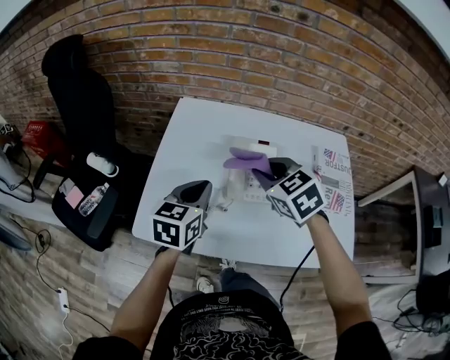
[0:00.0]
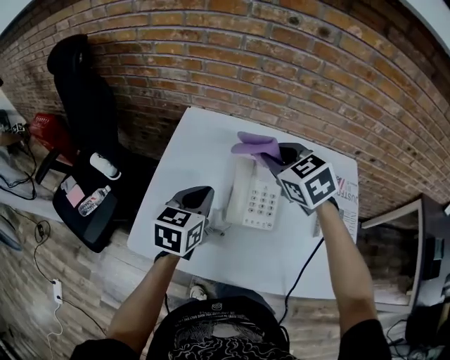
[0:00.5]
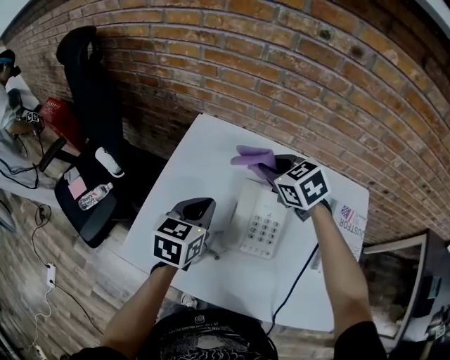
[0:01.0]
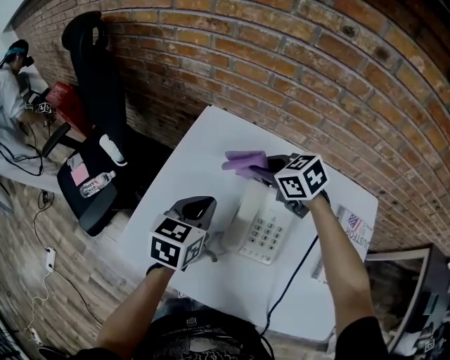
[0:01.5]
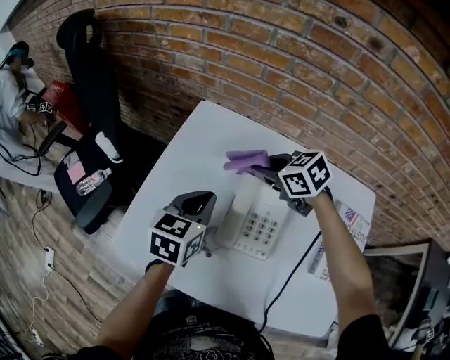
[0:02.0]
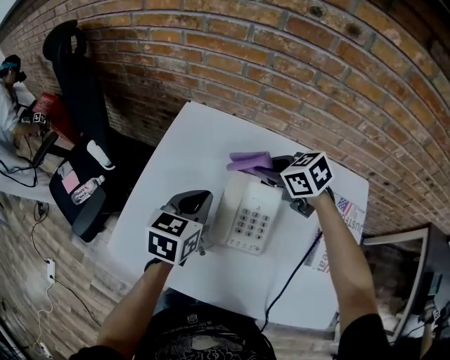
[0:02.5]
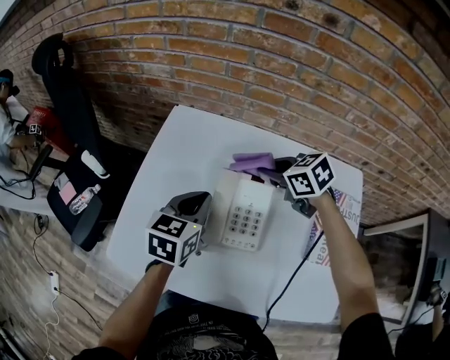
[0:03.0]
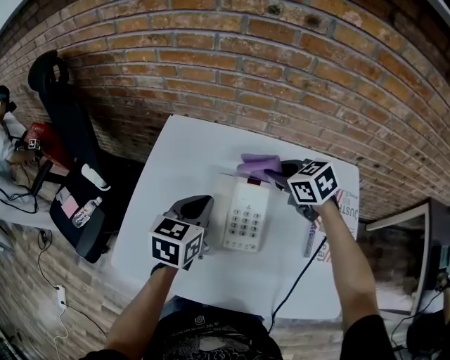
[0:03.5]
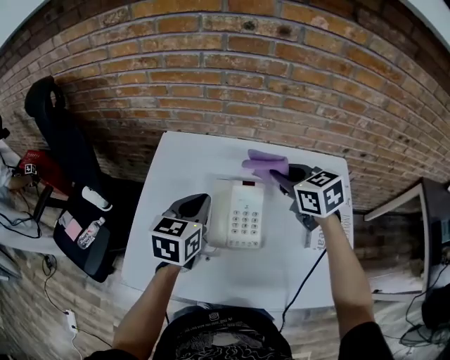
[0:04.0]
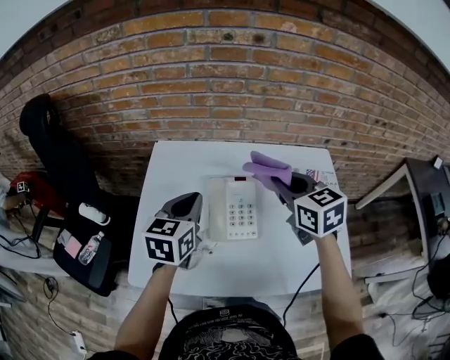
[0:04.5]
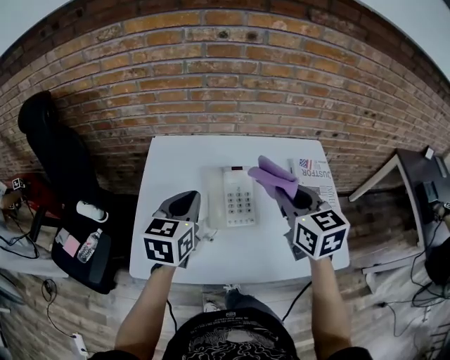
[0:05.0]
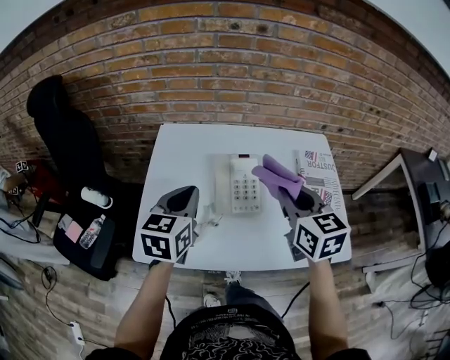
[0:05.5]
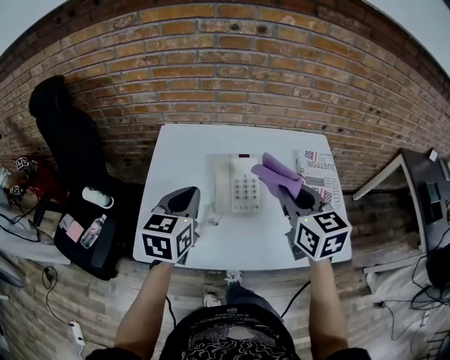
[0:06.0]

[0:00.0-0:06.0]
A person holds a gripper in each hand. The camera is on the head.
0:00.0 to 0:02.0: The left gripper changes place by roughly 10 cm, while the right gripper shifts by approximately 20 cm, and turns by some 30 degrees.
0:02.0 to 0:04.0: The right gripper moves to the right, upward and backward, some 15 cm, and swivels about 30 degrees; the left gripper changes place by about 5 cm.
0:04.0 to 0:06.0: The right gripper heads backward, covering about 20 cm, and turns by roughly 30 degrees; the left gripper moves backward and upward, roughly 10 cm.

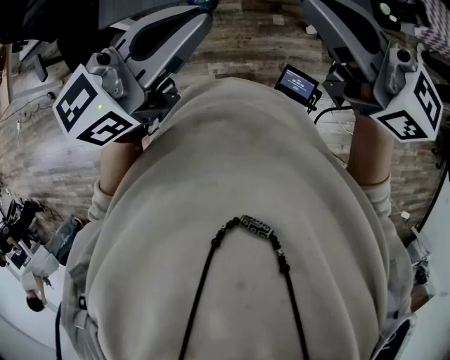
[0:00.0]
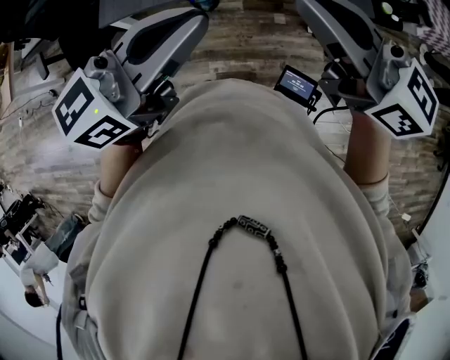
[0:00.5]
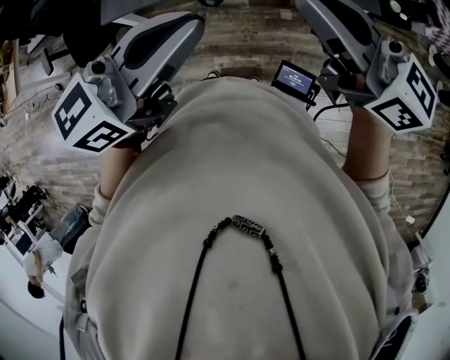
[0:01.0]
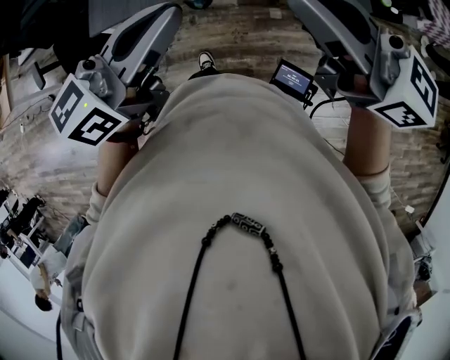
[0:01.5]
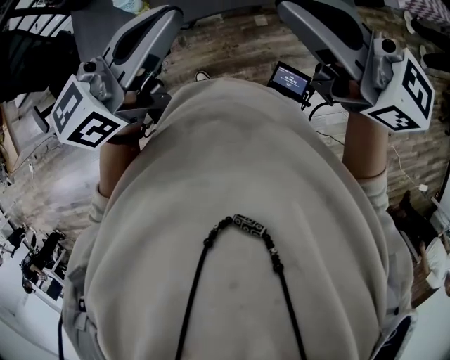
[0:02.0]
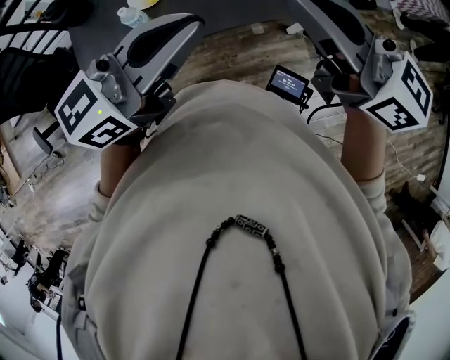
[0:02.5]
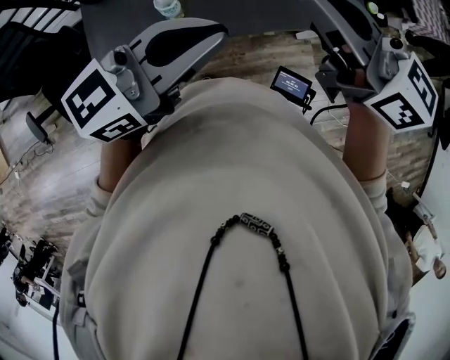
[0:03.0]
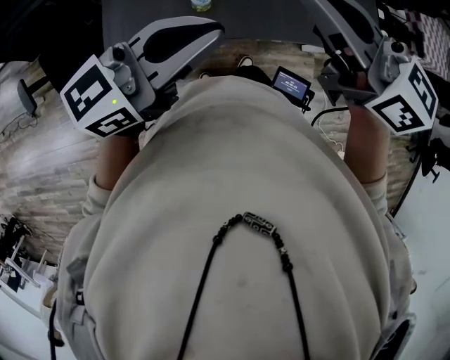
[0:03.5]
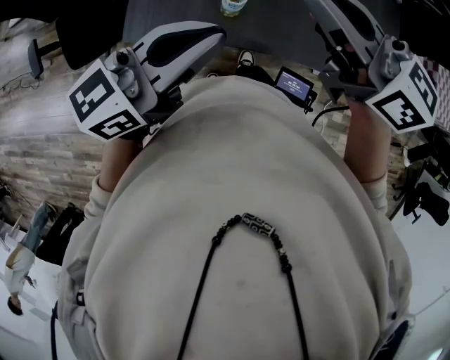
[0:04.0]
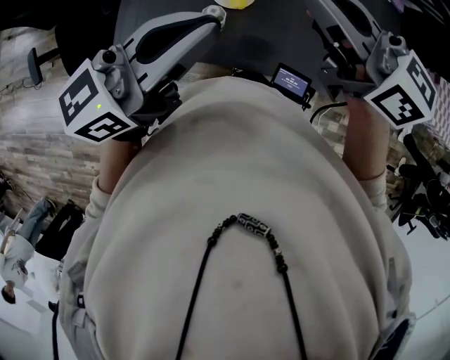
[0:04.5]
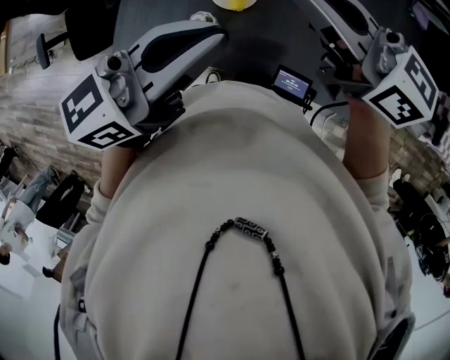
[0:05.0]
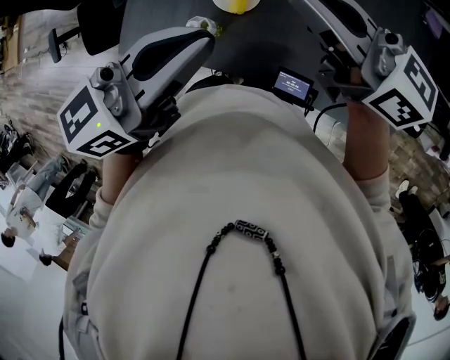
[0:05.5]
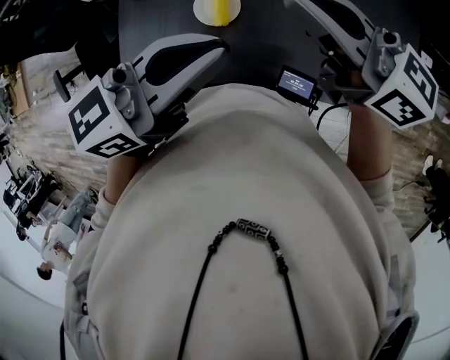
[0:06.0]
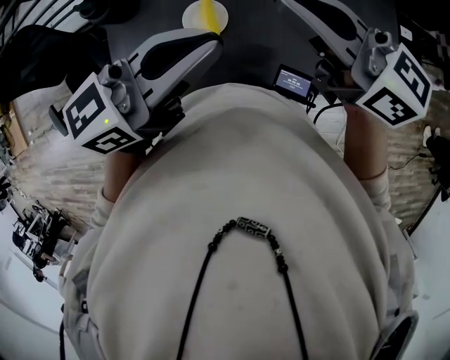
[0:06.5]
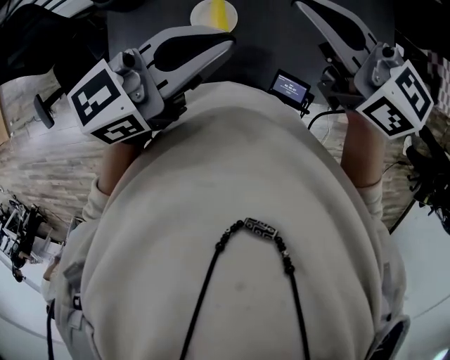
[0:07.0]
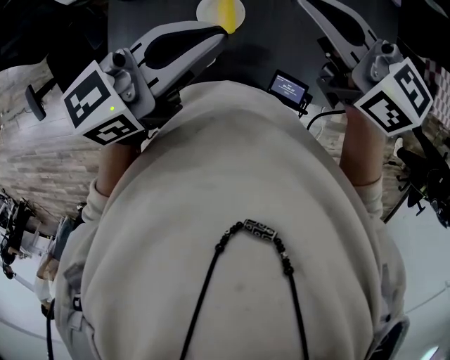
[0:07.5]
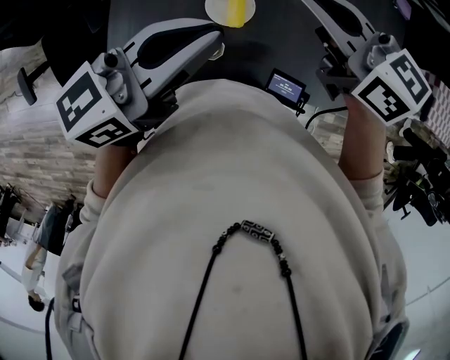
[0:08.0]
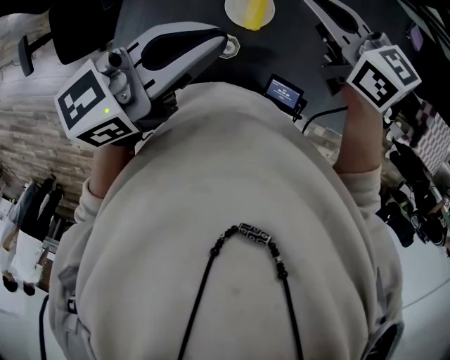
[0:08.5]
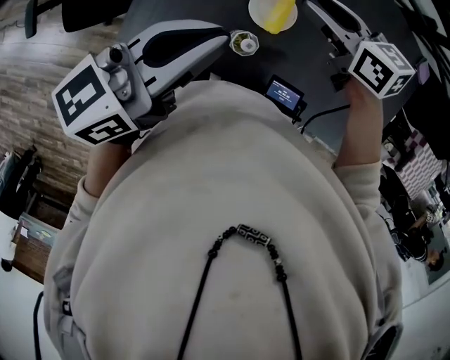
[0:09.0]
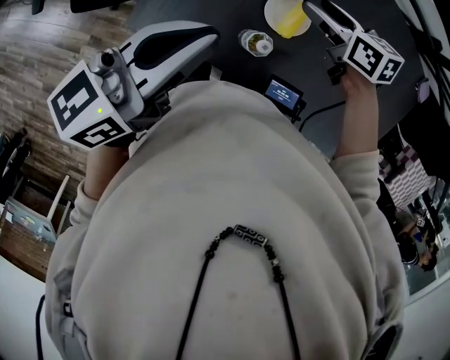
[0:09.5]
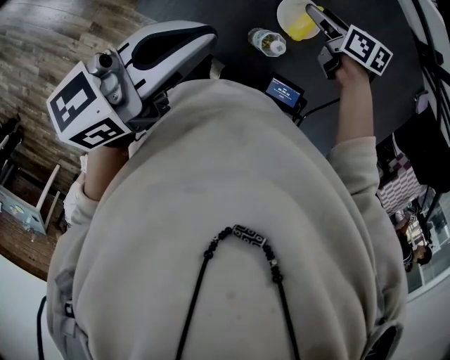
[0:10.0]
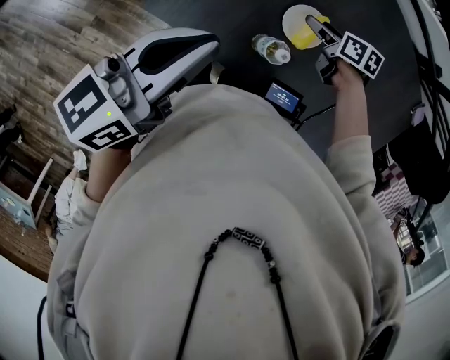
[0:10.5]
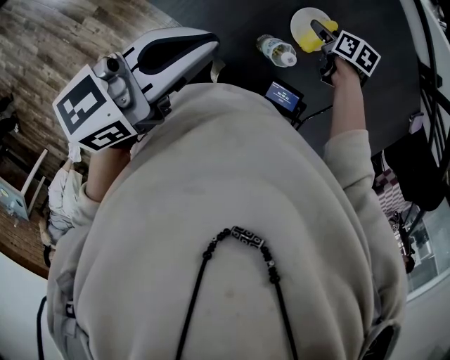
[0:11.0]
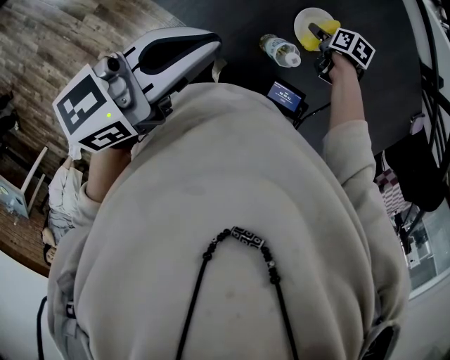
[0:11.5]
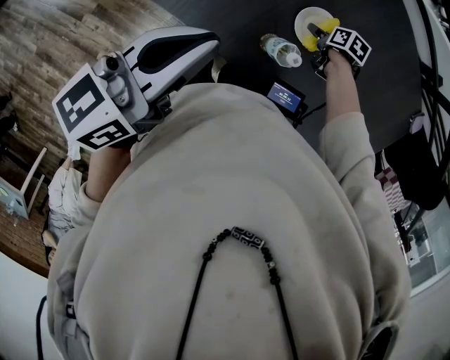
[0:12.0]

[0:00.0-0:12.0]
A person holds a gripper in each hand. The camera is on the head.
0:00.0 to 0:02.0: The left gripper shifts roughly 5 cm forward.
0:02.0 to 0:04.0: The right gripper goes roughly 5 cm forward.
0:04.0 to 0:06.0: Both grippers travel together to the right, approximately 10 cm.
0:06.0 to 0:08.0: The two grippers go roughly 10 cm to the left. The right gripper swivels about 20 degrees.
0:08.0 to 0:10.0: The right gripper heads downward, covering approximately 20 cm, turns by roughly 30 degrees, and opens; the left gripper is displaced to the left and backward by roughly 15 cm, and swivels about 30 degrees.
0:10.0 to 0:12.0: The right gripper is displaced downward by roughly 15 cm, and swivels roughly 30 degrees.

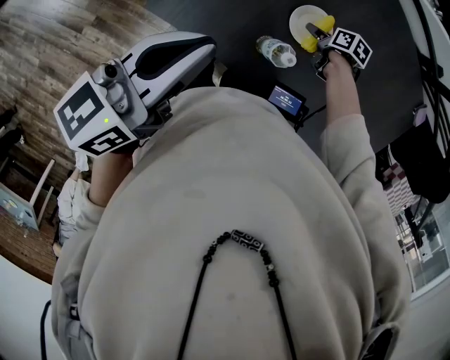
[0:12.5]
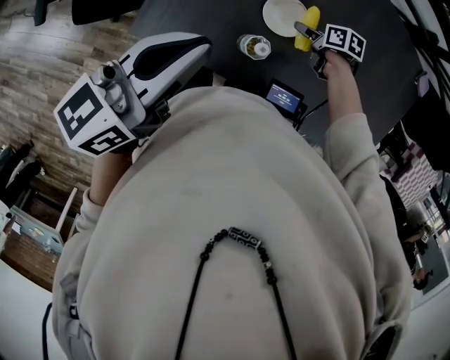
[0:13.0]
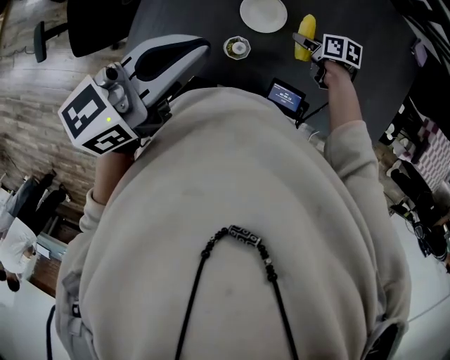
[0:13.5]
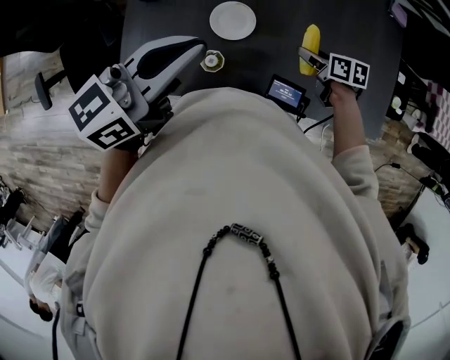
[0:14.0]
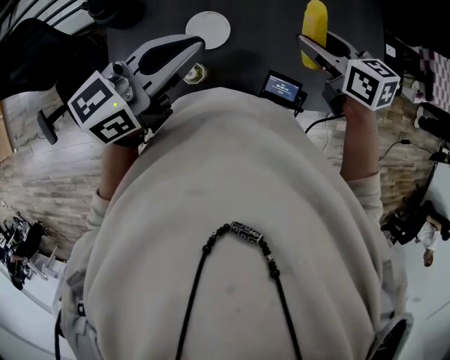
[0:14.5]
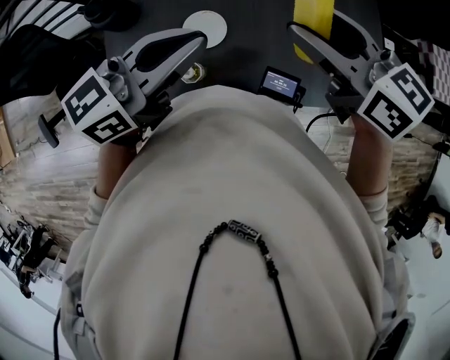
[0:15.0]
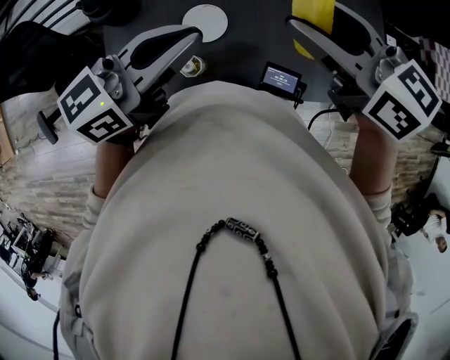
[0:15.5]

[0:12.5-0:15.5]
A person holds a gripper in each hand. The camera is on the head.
0:12.5 to 0:14.0: The left gripper changes place by approximately 15 cm, and changes its angle by some 30 degrees. The right gripper shifts by about 20 cm, and swivels roughly 20 degrees.
0:14.0 to 0:15.5: The right gripper travels upward by approximately 35 cm, and tips its fingers upward by some 30 degrees.

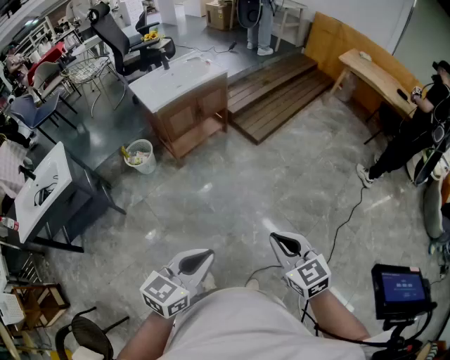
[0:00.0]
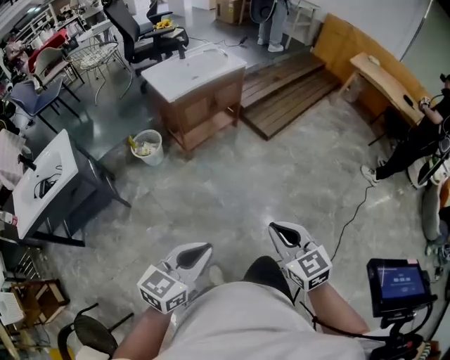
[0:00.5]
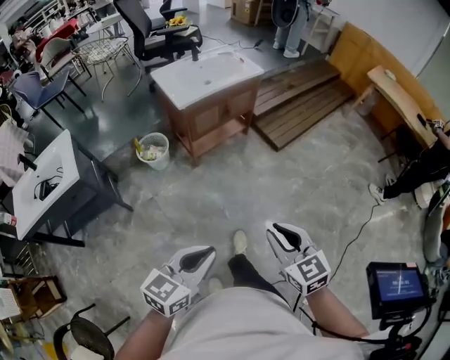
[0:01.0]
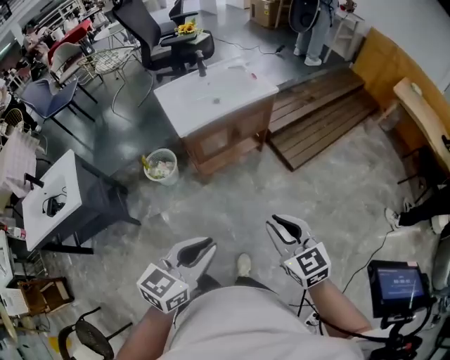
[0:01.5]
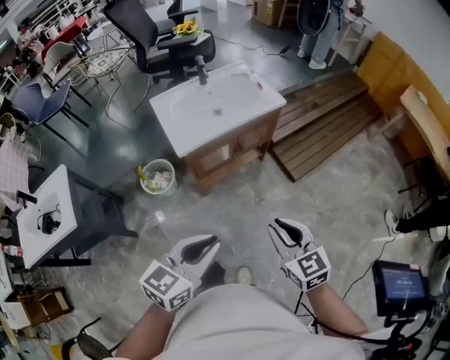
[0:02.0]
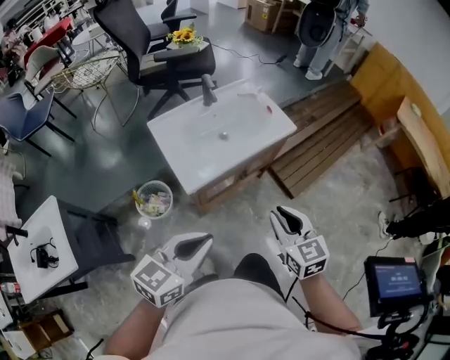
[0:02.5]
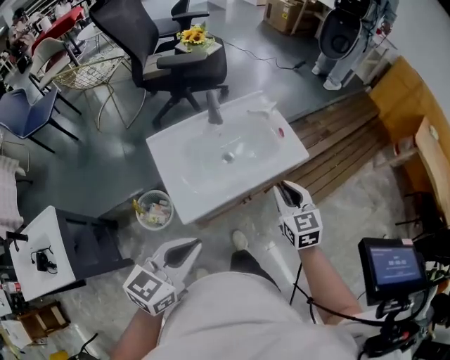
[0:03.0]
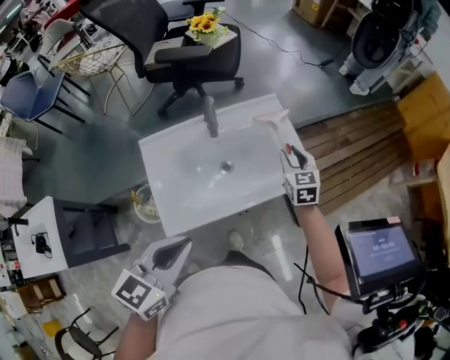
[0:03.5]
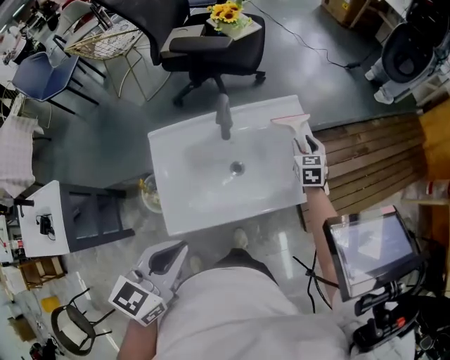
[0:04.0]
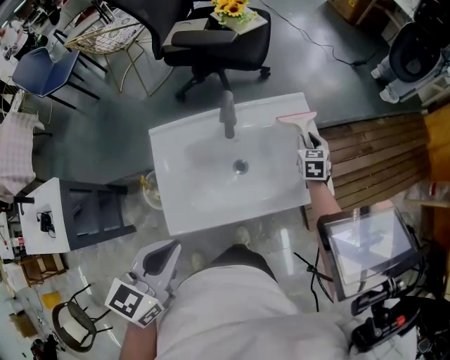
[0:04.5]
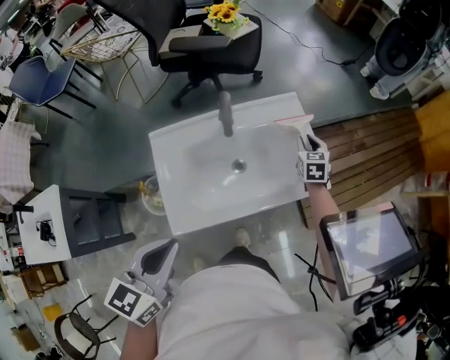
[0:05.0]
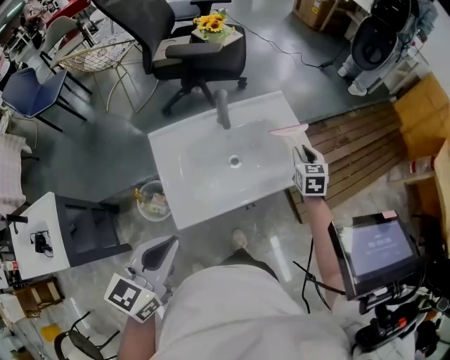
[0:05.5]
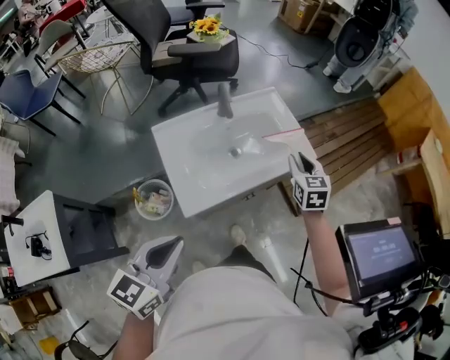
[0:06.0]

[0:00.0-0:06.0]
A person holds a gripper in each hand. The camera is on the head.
0:00.0 to 0:02.0: Both grippers are carried forward, approximately 50 cm.
0:02.0 to 0:04.0: The pair of grippers is taken forward, some 60 cm. The right gripper opens. The left gripper rotates about 30 degrees.
0:04.0 to 0:06.0: The right gripper travels backward and upward by approximately 30 cm. The left gripper heads backward and to the left, covering approximately 20 cm.
